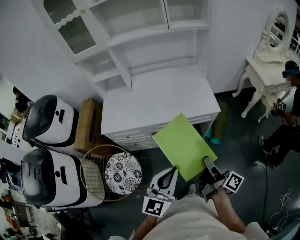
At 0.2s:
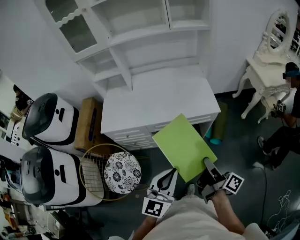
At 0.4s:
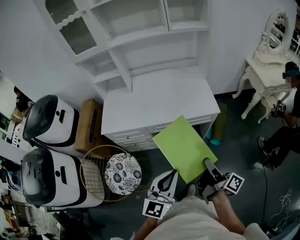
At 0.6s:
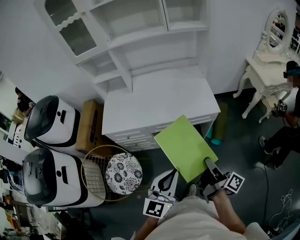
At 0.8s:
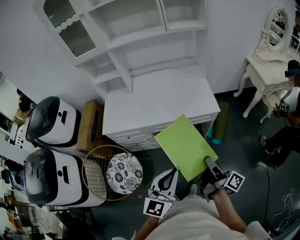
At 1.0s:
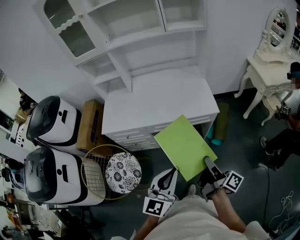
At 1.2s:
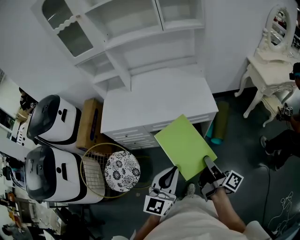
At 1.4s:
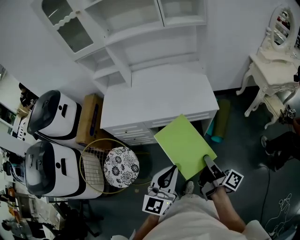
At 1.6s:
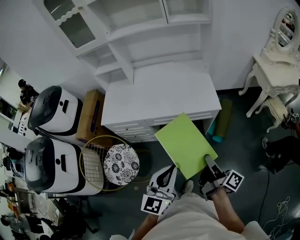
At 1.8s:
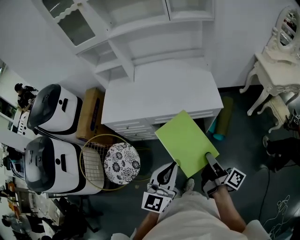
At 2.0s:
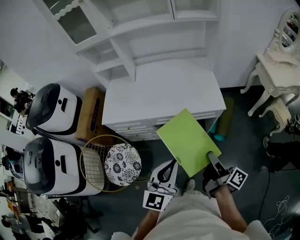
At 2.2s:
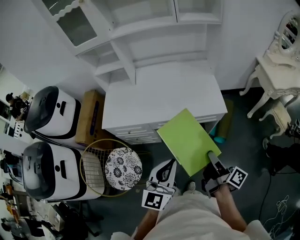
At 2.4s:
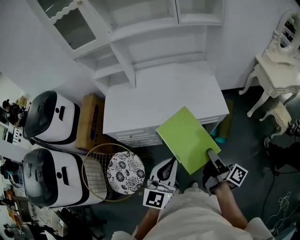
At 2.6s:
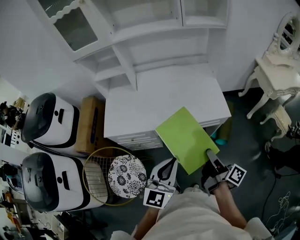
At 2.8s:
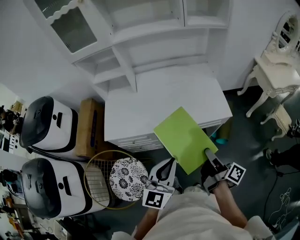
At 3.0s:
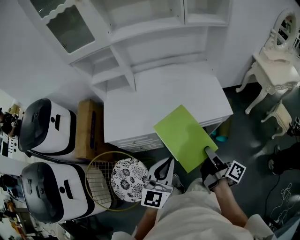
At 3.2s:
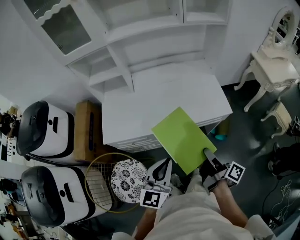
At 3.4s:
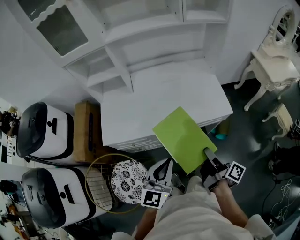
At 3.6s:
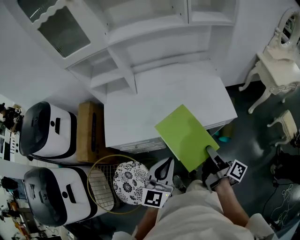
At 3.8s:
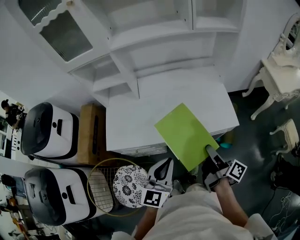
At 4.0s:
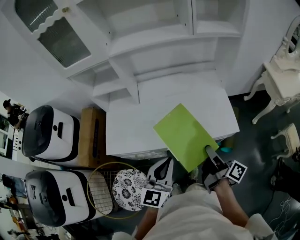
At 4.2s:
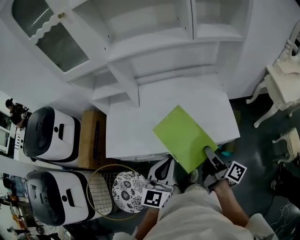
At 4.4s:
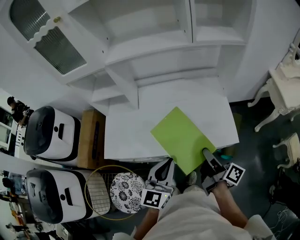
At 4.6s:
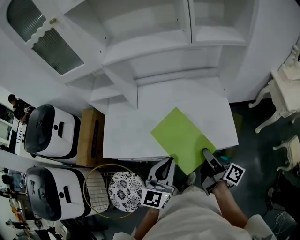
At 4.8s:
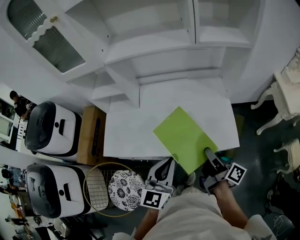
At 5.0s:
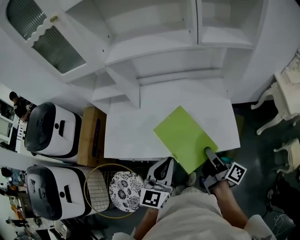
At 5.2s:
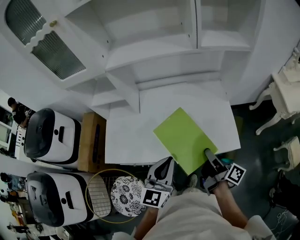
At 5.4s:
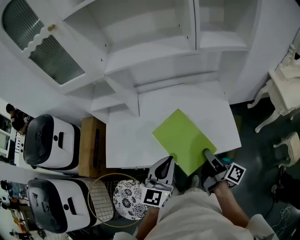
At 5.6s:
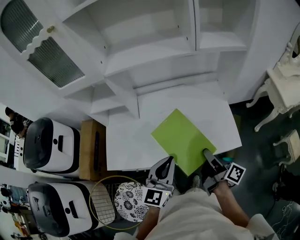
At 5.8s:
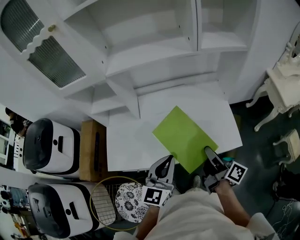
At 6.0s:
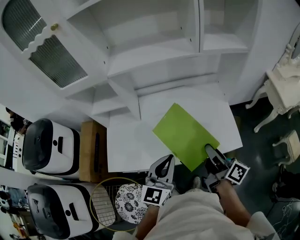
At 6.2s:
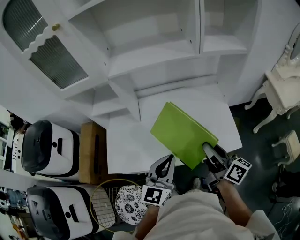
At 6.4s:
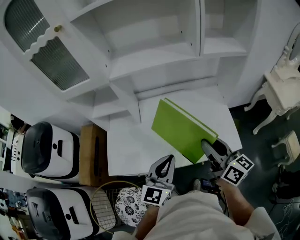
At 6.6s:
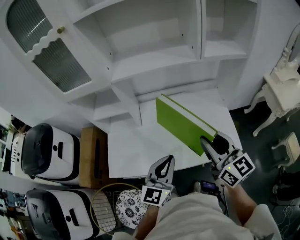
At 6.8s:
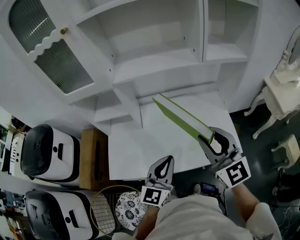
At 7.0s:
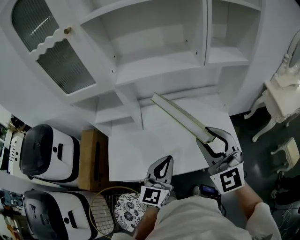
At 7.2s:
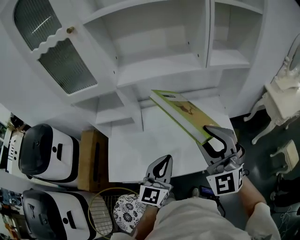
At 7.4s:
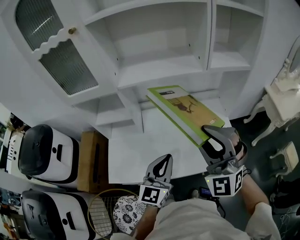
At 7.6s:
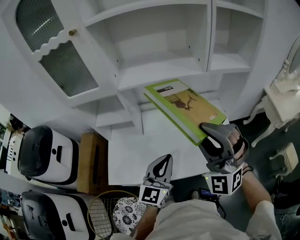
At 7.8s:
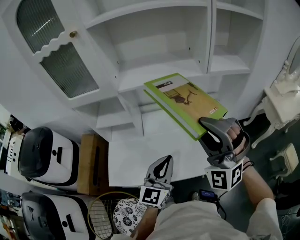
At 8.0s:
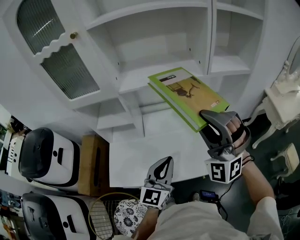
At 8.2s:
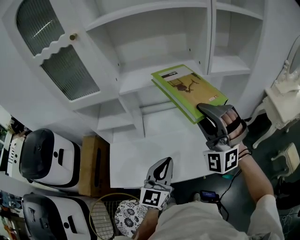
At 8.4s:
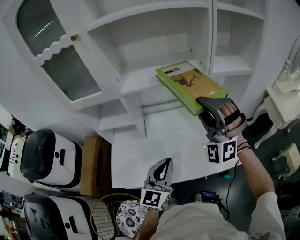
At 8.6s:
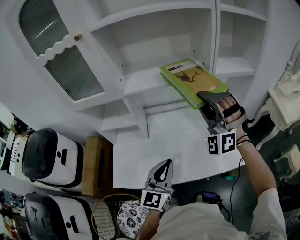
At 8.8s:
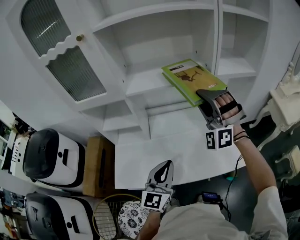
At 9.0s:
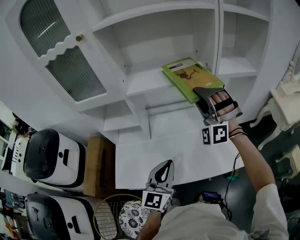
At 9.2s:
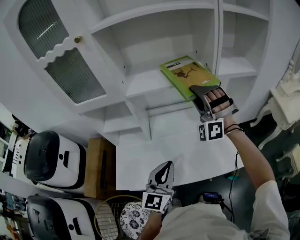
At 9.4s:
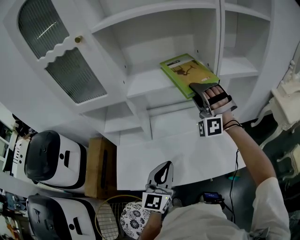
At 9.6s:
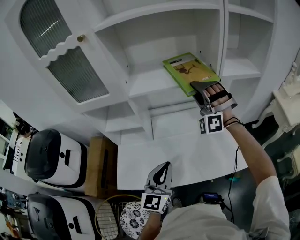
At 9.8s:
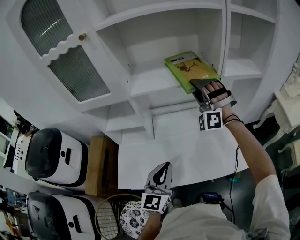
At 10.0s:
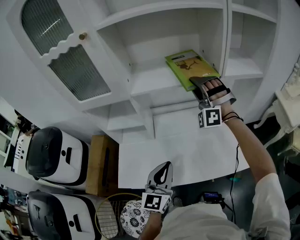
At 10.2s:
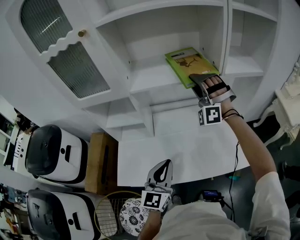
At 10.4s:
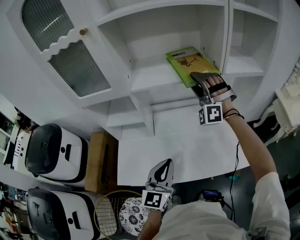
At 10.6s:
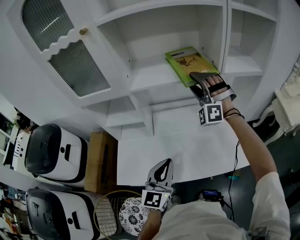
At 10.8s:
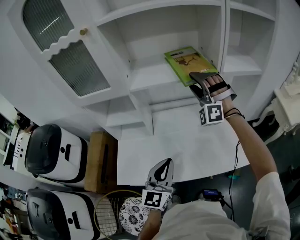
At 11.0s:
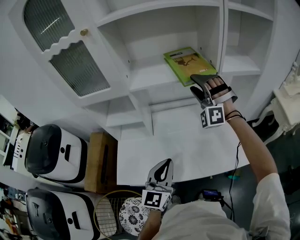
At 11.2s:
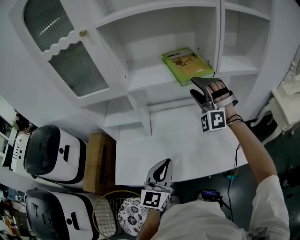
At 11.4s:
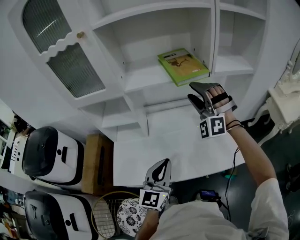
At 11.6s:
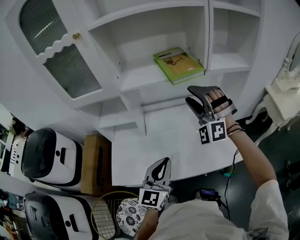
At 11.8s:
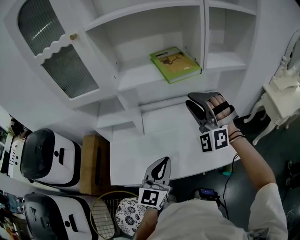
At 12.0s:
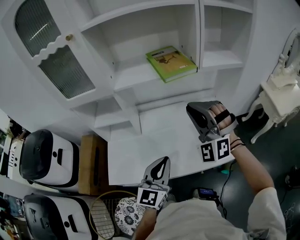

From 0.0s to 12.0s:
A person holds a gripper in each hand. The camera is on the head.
From 0.0s to 1.6s: The grippers both shift to the right by about 5 cm.
From 1.6s to 3.0s: The two grippers go about 20 cm to the left and forward.
From 3.0s to 4.4s: Both grippers move forward, about 15 cm.
From 4.4s to 6.0s: The two grippers go approximately 5 cm forward.
From 6.0s to 7.6s: The left gripper shifts approximately 5 cm forward. The right gripper moves upward and to the left, roughly 20 cm, and rotates around the line of its fingers by roughly 130 degrees, counterclockwise from behind.
From 7.6s to 9.0s: The right gripper moves forward, about 20 cm, and turns by about 20 degrees.
From 9.0s to 10.4s: The right gripper travels forward by approximately 10 cm.
From 10.4s to 12.0s: The left gripper ends up about 5 cm from where it was, while the right gripper moves backward, approximately 20 cm, and closes.

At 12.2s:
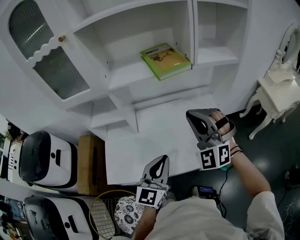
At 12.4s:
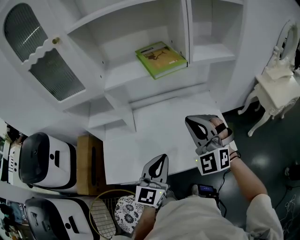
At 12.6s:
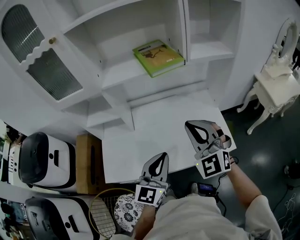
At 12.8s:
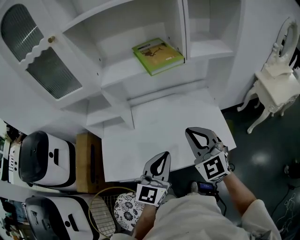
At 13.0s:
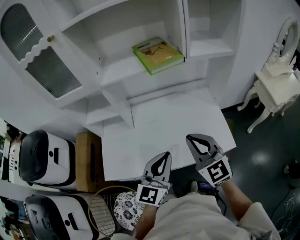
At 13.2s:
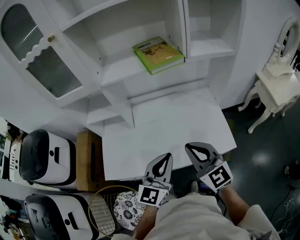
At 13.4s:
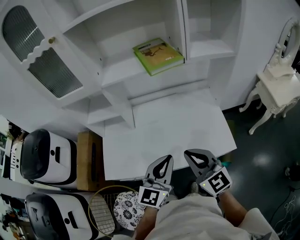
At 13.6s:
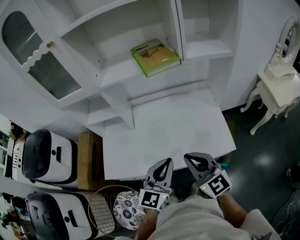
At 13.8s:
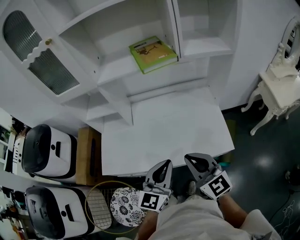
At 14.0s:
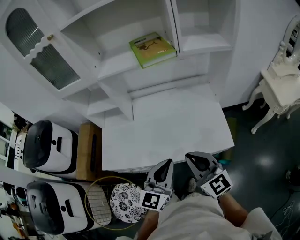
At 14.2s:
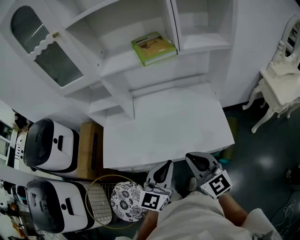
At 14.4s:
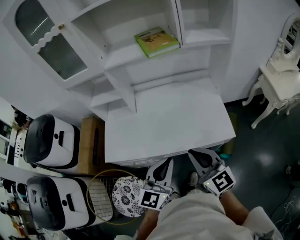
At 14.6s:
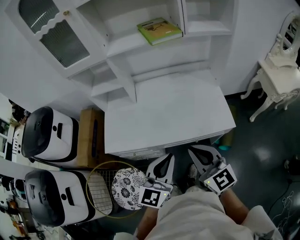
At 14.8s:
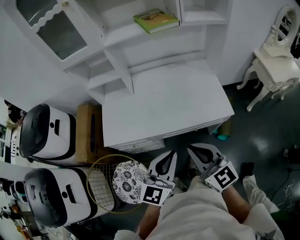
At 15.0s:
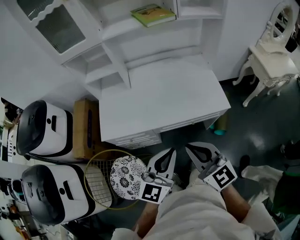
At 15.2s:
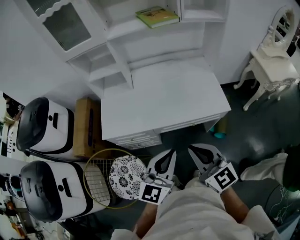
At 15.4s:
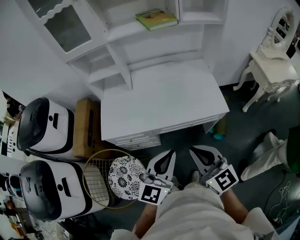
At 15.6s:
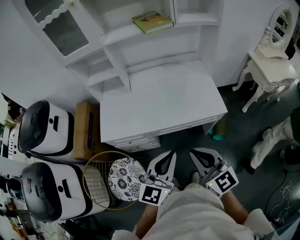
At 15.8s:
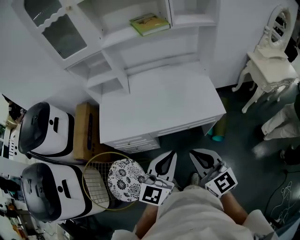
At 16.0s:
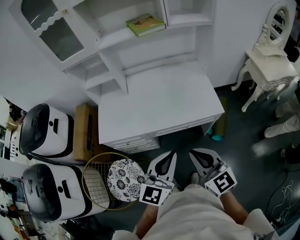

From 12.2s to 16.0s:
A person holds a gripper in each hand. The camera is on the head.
From 12.2s to 13.4s: The right gripper heads backward and downward, covering roughly 15 cm, and rotates around the line of its fingers by approximately 60 degrees, clockwise from behind.
From 13.4s to 14.8s: Both grippers travel together backward, some 20 cm.
From 14.8s to 16.0s: The grippers both shift backward and to the right by about 10 cm.

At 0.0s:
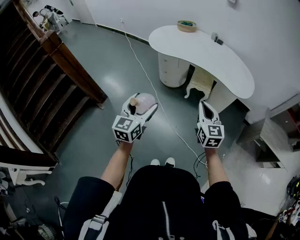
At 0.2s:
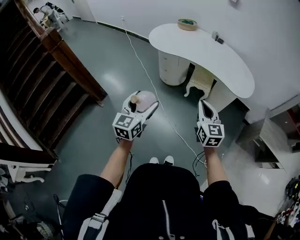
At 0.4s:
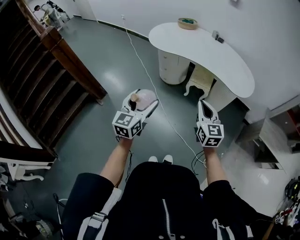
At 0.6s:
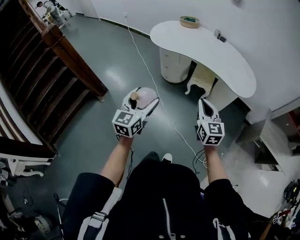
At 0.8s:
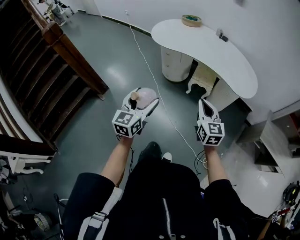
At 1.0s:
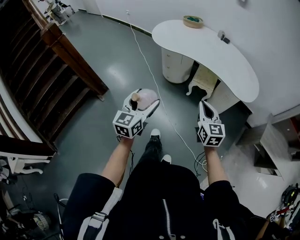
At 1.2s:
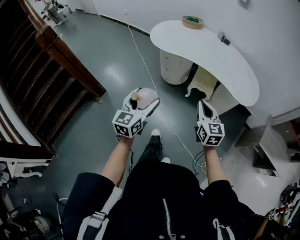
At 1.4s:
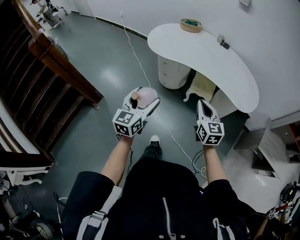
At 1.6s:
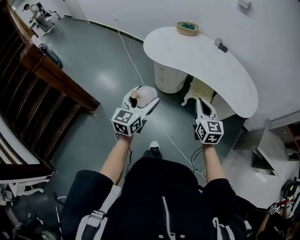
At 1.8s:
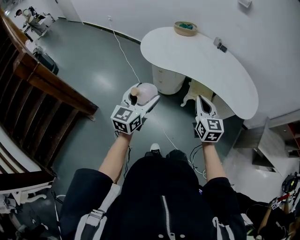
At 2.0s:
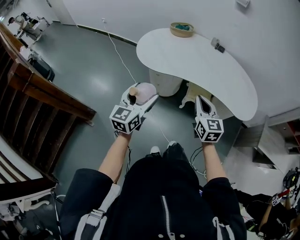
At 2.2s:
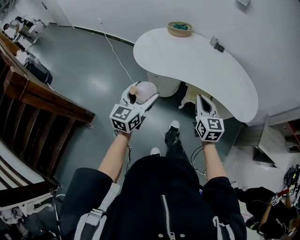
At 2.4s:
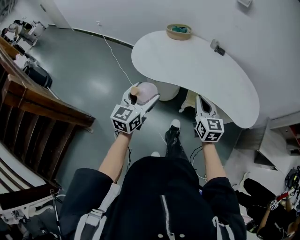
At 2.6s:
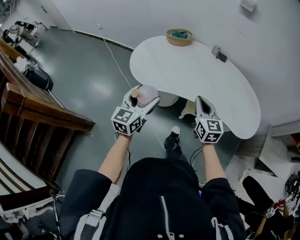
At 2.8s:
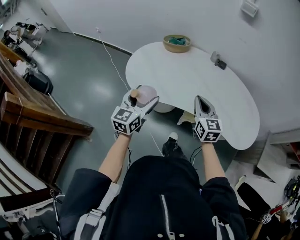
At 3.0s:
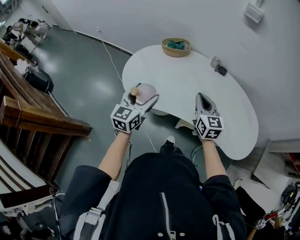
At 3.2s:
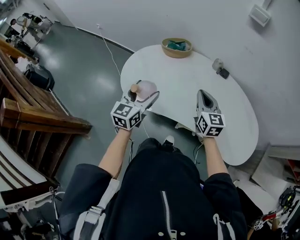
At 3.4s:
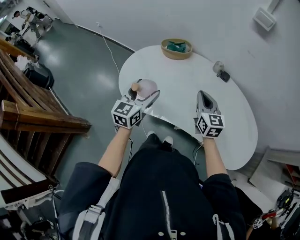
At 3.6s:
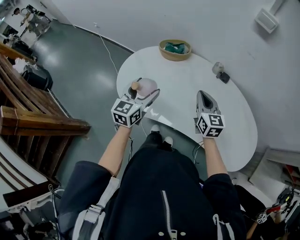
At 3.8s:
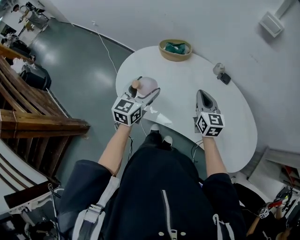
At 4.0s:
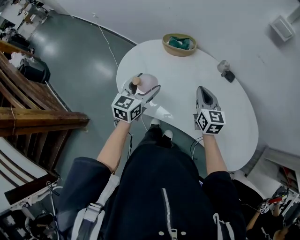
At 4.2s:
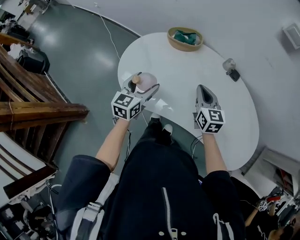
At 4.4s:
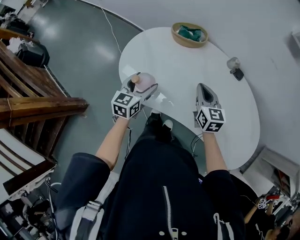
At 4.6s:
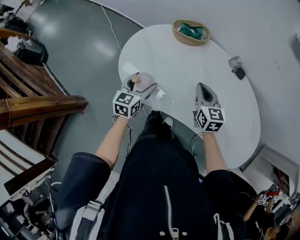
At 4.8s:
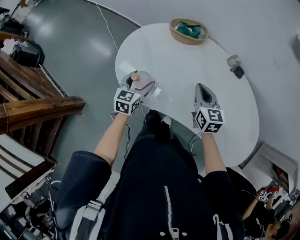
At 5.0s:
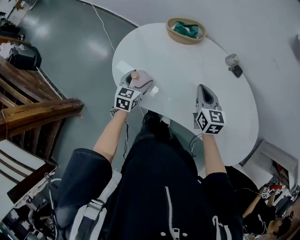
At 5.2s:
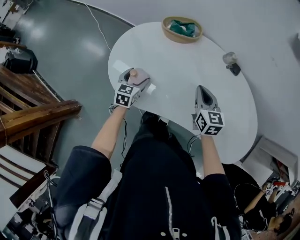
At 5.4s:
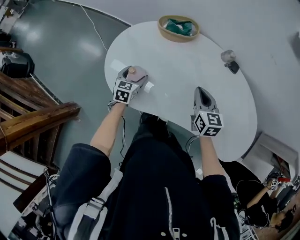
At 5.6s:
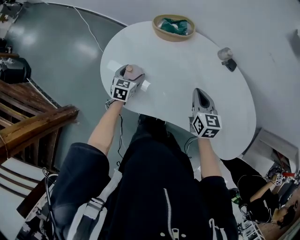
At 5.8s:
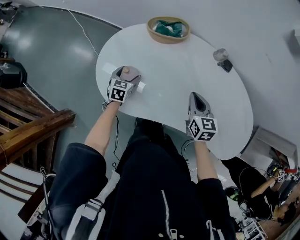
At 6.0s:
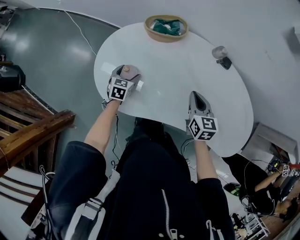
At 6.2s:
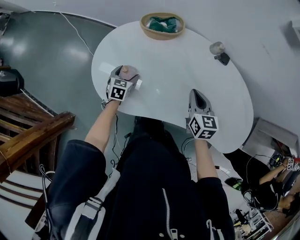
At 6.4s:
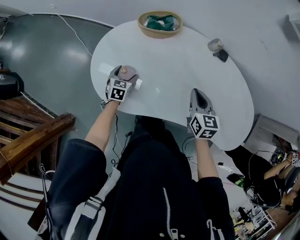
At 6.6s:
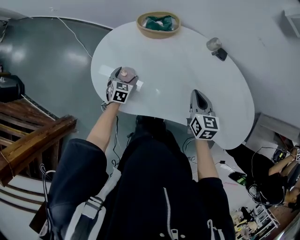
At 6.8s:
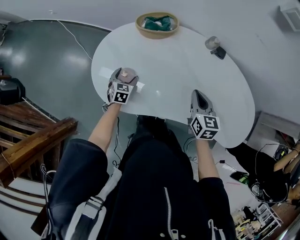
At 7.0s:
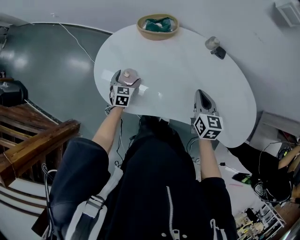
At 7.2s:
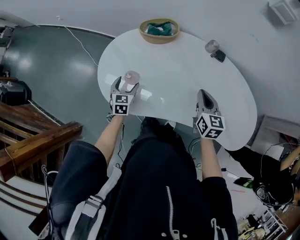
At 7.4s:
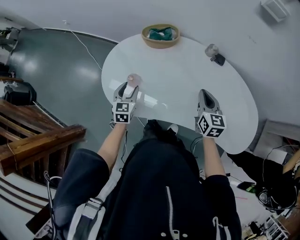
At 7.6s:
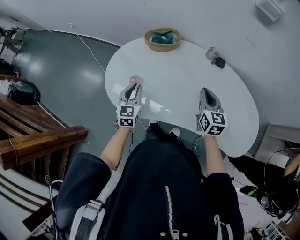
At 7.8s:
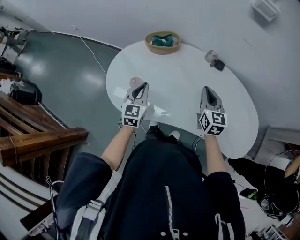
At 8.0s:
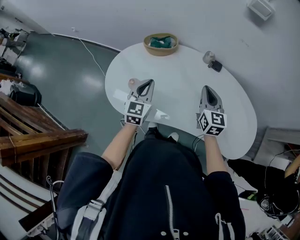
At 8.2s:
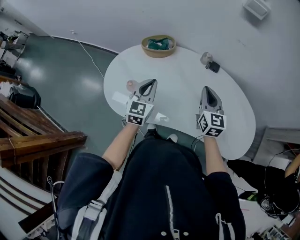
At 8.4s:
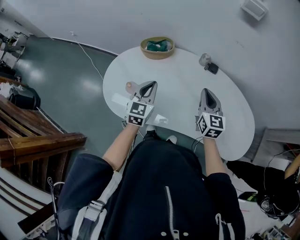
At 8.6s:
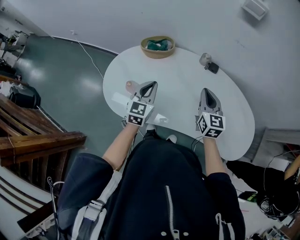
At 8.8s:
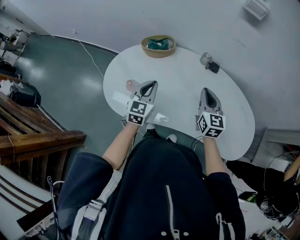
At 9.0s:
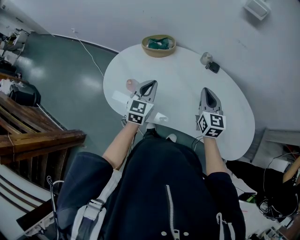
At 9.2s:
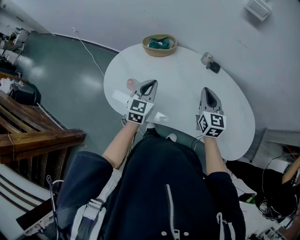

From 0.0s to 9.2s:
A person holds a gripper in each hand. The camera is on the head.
From 0.0s to 1.6s: The grippers both shift forward by approximately 25 cm.
From 1.6s to 3.0s: The two grippers travel together, forward, about 40 cm.
From 3.0s to 4.6s: The right gripper is displaced forward and downward by about 20 cm, while the left gripper travels downward and forward by about 20 cm.
From 4.6s to 6.2s: The right gripper travels to the right by some 5 cm; the left gripper shifts about 20 cm downward and forward, and rotates roughly 20 degrees.
From 6.2s to 7.6s: The left gripper shifts approximately 20 cm upward and backward, swivels some 30 degrees, and closes its fingers, while the right gripper shifts roughly 10 cm upward and to the right.
From 7.6s to 9.2s: The left gripper shifts approximately 10 cm to the right and upward.
